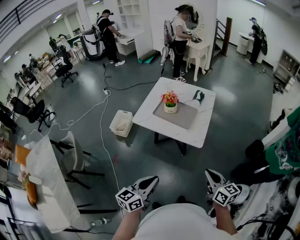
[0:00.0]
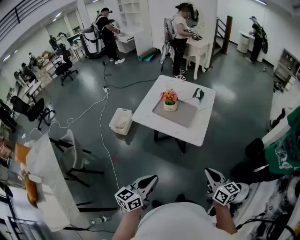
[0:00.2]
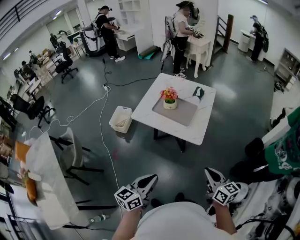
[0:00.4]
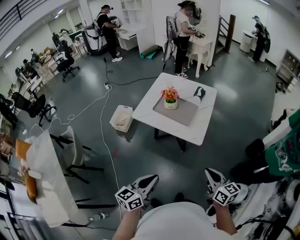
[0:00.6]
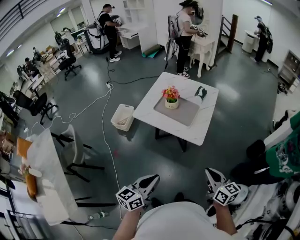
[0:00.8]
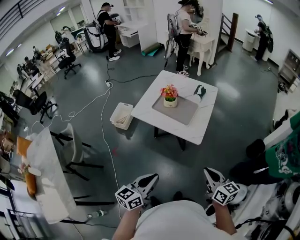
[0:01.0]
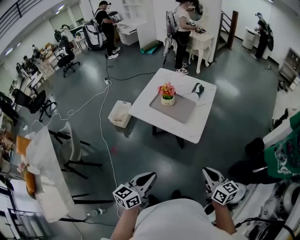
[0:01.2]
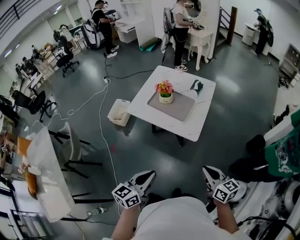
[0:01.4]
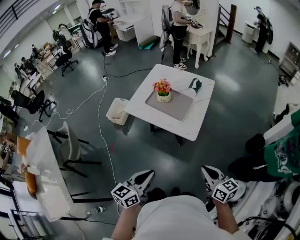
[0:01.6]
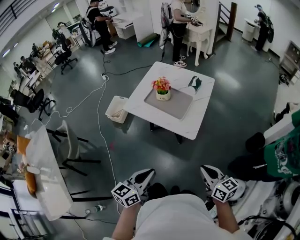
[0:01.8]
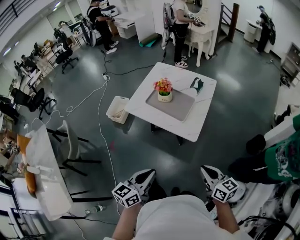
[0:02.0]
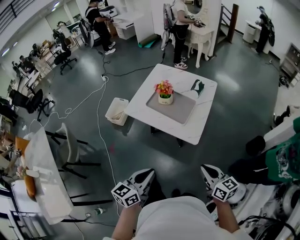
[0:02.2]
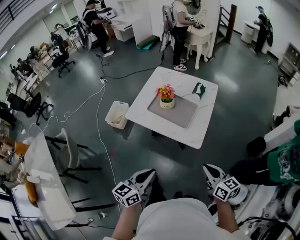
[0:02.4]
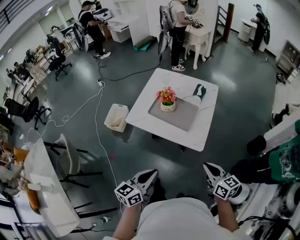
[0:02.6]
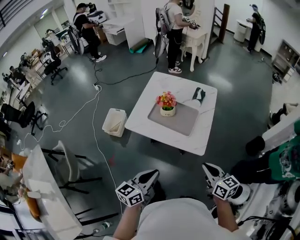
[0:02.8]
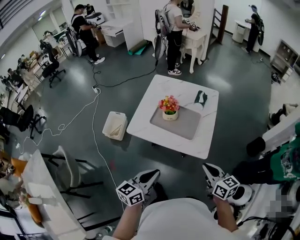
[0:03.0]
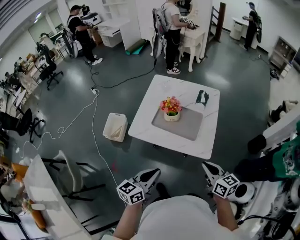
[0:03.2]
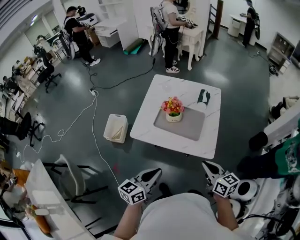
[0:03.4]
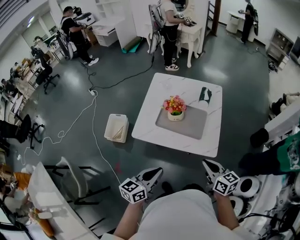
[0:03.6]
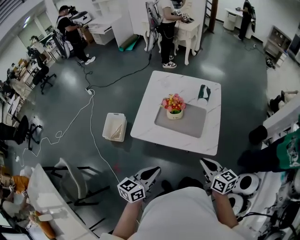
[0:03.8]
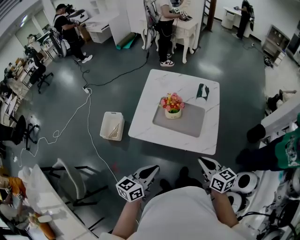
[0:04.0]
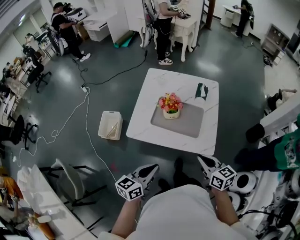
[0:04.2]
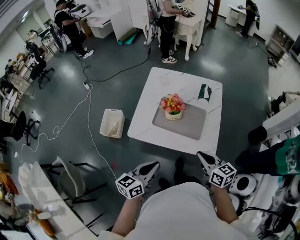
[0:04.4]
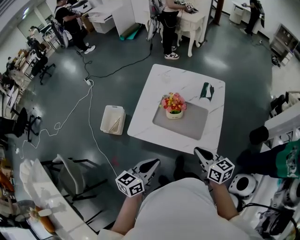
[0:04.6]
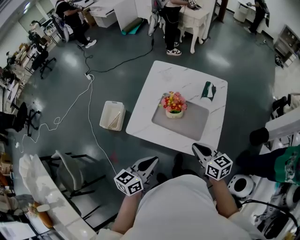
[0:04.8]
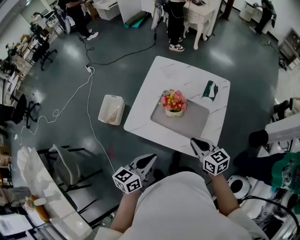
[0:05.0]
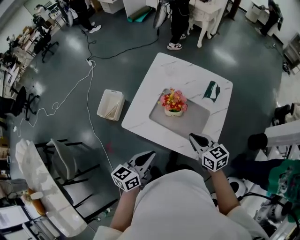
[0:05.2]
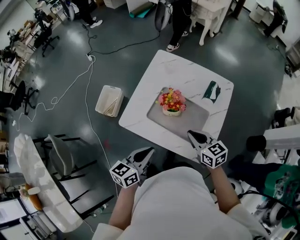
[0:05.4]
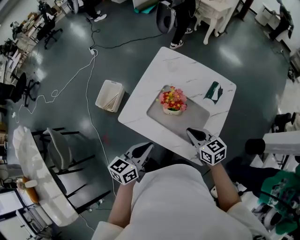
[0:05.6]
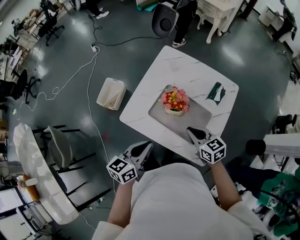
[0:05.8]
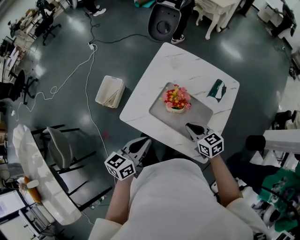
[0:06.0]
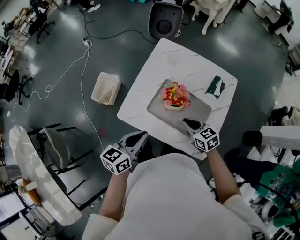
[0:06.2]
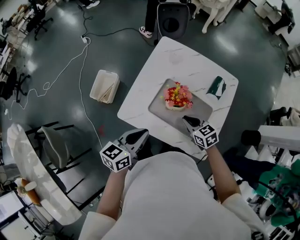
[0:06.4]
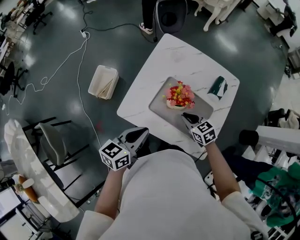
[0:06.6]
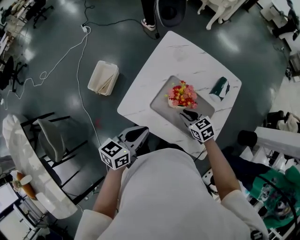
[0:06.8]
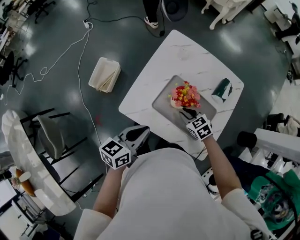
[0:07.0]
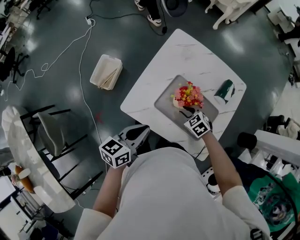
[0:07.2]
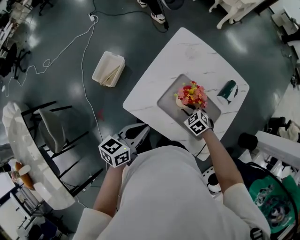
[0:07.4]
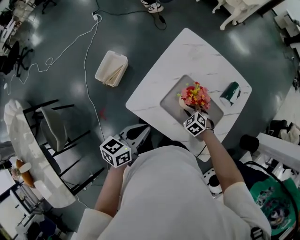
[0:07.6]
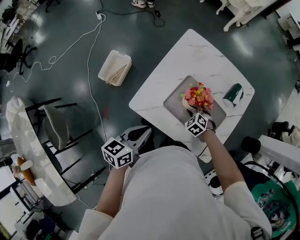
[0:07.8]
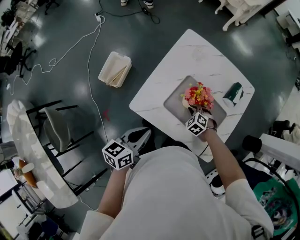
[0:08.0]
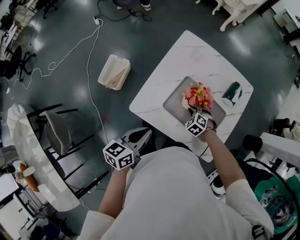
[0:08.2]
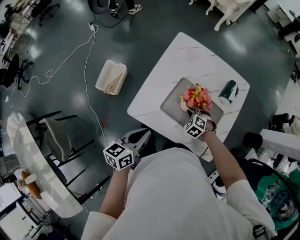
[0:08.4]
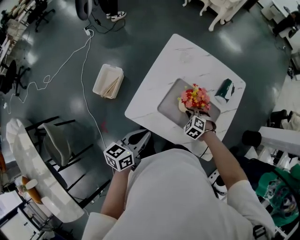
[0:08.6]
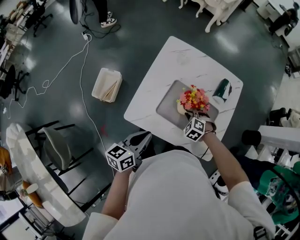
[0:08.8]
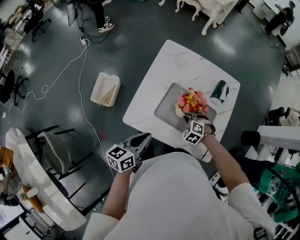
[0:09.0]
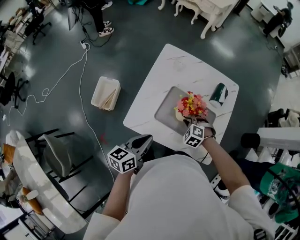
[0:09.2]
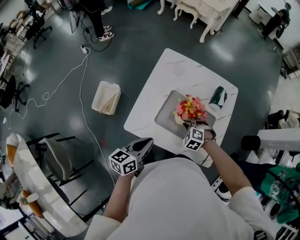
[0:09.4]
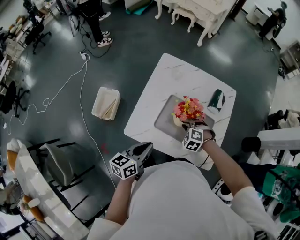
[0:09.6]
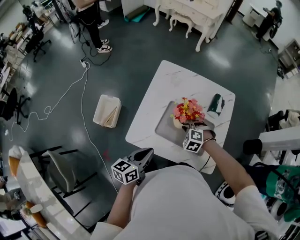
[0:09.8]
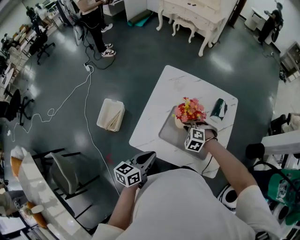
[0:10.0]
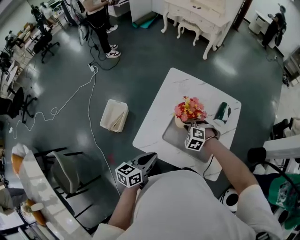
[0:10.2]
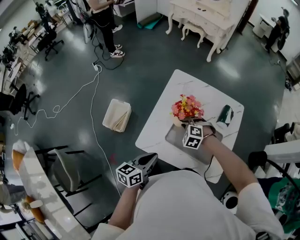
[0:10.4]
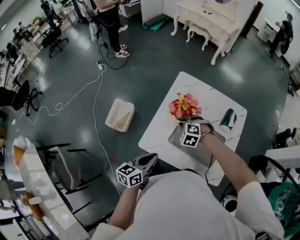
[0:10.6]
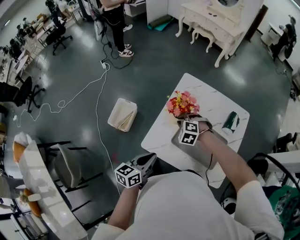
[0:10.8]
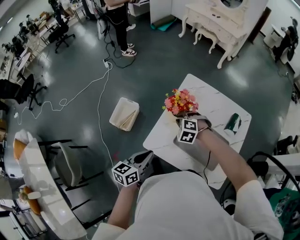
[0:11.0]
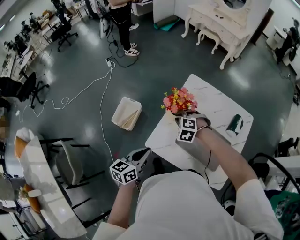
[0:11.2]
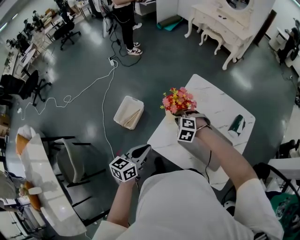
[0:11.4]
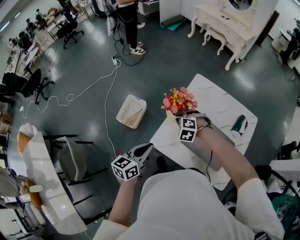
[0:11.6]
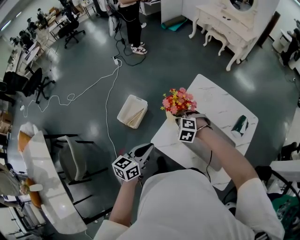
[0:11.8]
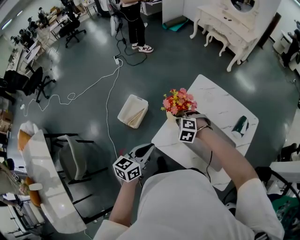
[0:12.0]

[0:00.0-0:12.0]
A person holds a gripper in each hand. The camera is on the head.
0:00.0 to 0:01.6: The two grippers go roughly 5 cm to the right.
0:01.6 to 0:03.0: The grippers both shift forward and to the left by some 20 cm.
0:03.0 to 0:04.4: The two grippers go about 15 cm forward and to the left.
0:04.4 to 0:06.0: The left gripper is displaced forward by roughly 15 cm. Meanwhile the right gripper heads forward and downward, covering some 25 cm, and turns by roughly 30 degrees.
0:06.0 to 0:07.6: The left gripper shifts approximately 10 cm to the left and forward. The right gripper moves downward and forward, roughly 20 cm, tilts its fingers roughly 30 degrees downward, and opens.
0:07.6 to 0:09.0: The right gripper changes place by roughly 5 cm.
0:09.0 to 0:10.4: The right gripper goes roughly 15 cm to the left, upward and forward.
0:10.4 to 0:12.0: Both grippers move to the left, about 15 cm.

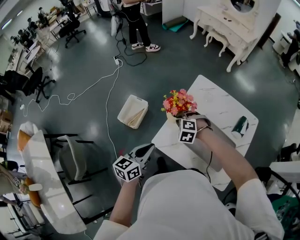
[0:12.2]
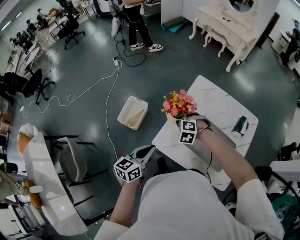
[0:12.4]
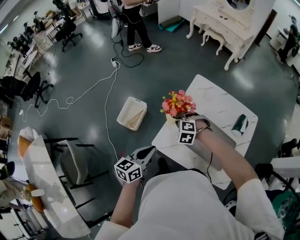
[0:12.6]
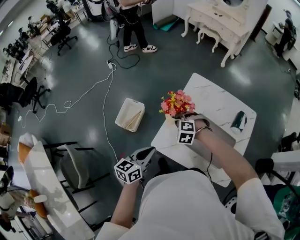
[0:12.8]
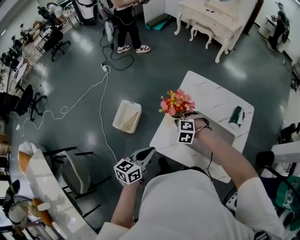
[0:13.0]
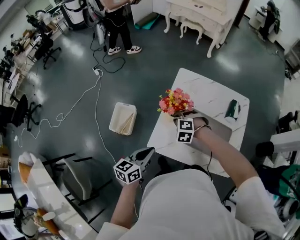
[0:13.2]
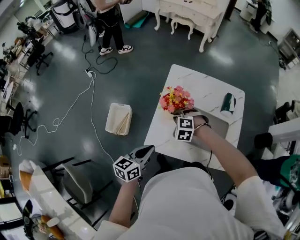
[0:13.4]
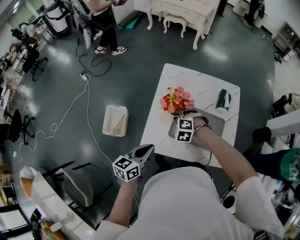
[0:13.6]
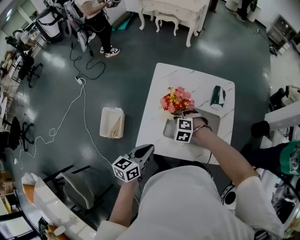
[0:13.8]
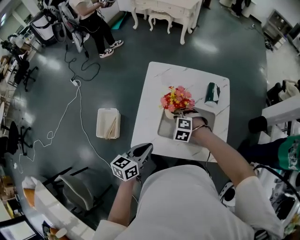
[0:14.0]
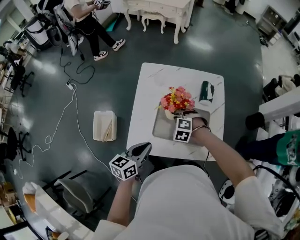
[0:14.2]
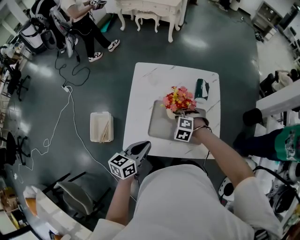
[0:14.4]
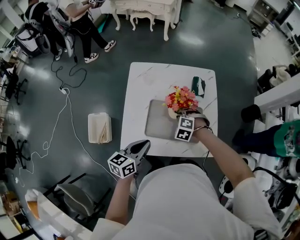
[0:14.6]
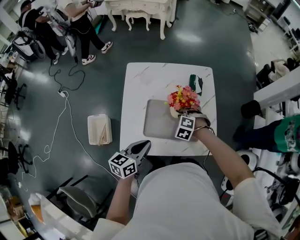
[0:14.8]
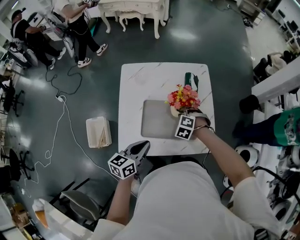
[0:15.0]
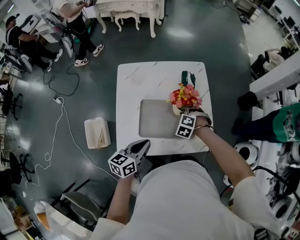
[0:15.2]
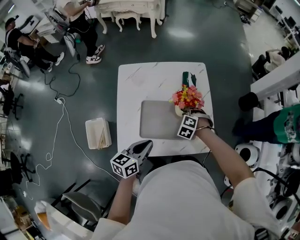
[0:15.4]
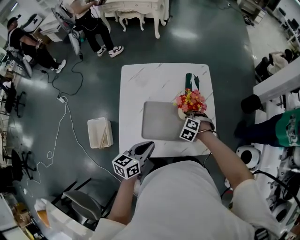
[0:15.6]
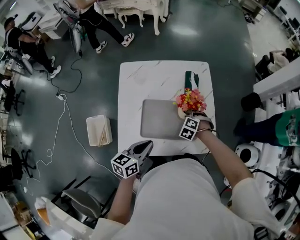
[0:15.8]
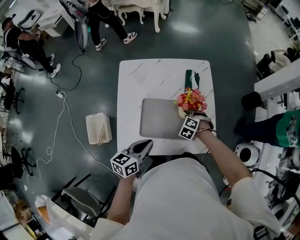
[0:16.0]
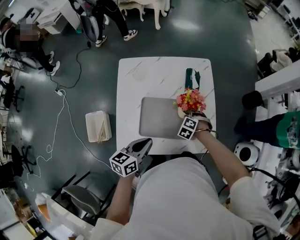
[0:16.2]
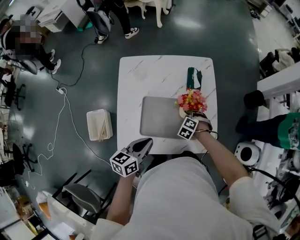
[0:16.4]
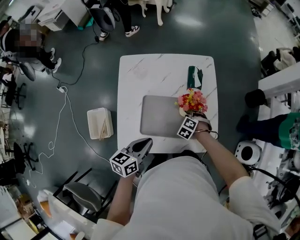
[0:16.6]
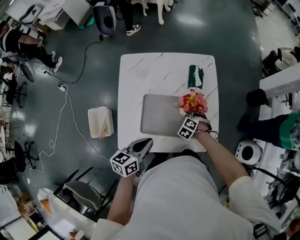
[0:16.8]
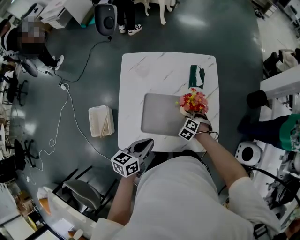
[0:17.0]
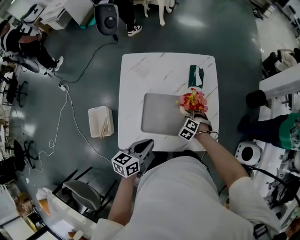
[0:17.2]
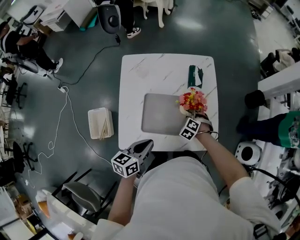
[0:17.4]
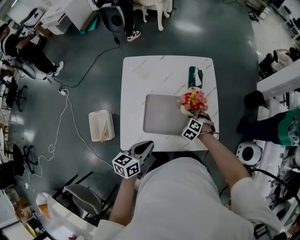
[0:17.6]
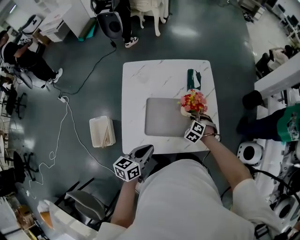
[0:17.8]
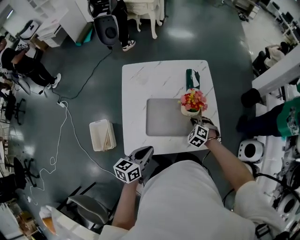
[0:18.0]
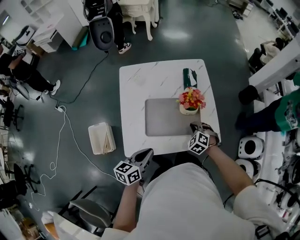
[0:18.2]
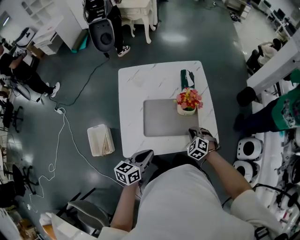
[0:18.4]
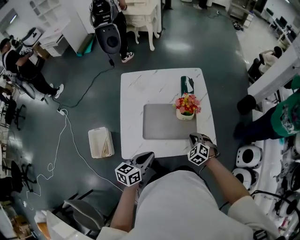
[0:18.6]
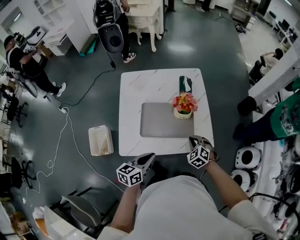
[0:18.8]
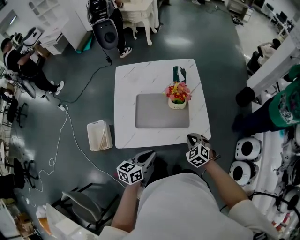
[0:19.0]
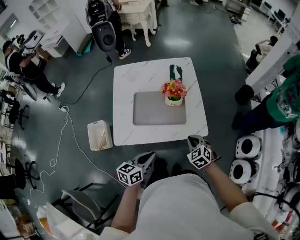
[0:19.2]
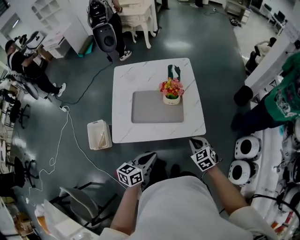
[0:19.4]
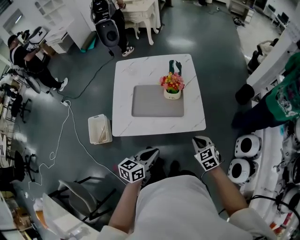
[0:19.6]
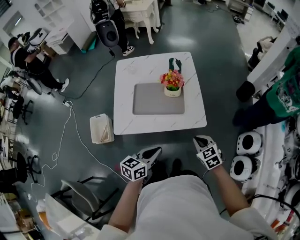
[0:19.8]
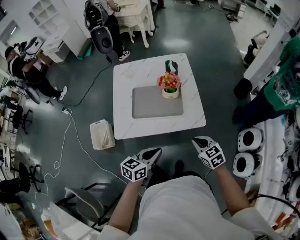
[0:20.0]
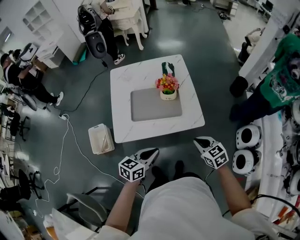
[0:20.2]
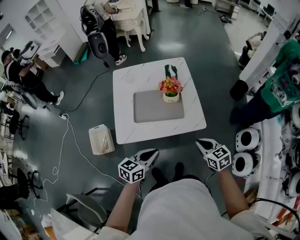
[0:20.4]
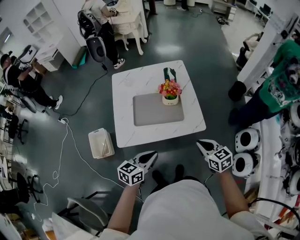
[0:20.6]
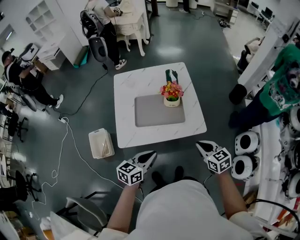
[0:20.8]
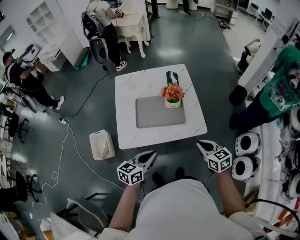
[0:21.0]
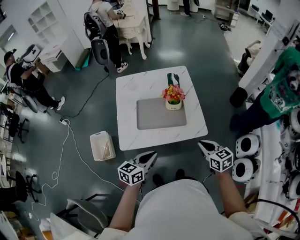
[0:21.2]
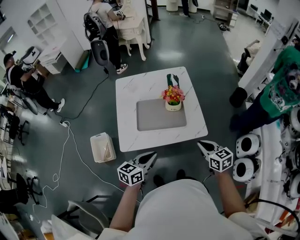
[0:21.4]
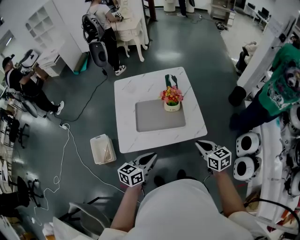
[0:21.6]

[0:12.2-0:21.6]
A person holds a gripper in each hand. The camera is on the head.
0:12.2 to 0:13.8: The right gripper ends up some 15 cm from where it was, and changes its angle by some 20 degrees. The left gripper ends up some 10 cm from where it was, and turns by roughly 20 degrees.
0:13.8 to 0:15.4: The right gripper goes some 20 cm to the right, and swivels roughly 30 degrees. Meanwhile the left gripper shifts about 15 cm to the right and forward.
0:15.4 to 0:17.0: The right gripper travels downward by some 10 cm.
0:17.0 to 0:18.4: The right gripper moves backward and upward, roughly 15 cm, and closes up; the left gripper travels backward by roughly 10 cm.
0:18.4 to 0:20.0: The left gripper heads to the right and backward, covering roughly 20 cm. Meanwhile the right gripper is displaced backward, to the right and upward by approximately 25 cm, and rotates approximately 40 degrees.
0:20.0 to 0:21.6: The right gripper moves upward, roughly 5 cm, and turns by approximately 20 degrees. Meanwhile the left gripper shifts roughly 5 cm to the left.

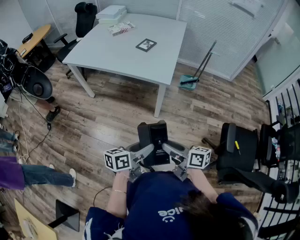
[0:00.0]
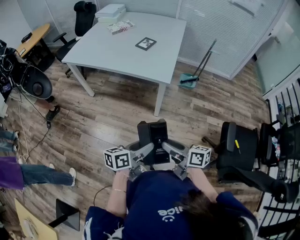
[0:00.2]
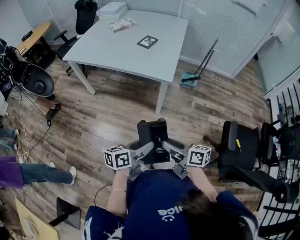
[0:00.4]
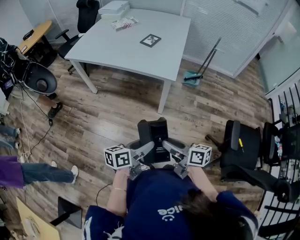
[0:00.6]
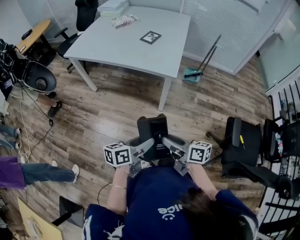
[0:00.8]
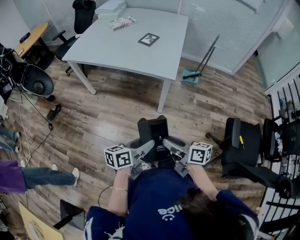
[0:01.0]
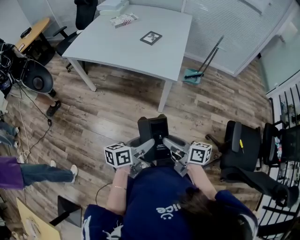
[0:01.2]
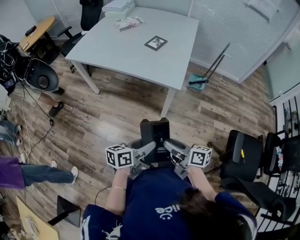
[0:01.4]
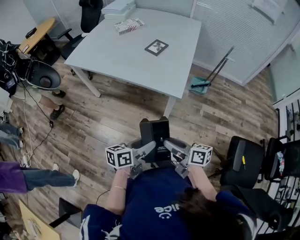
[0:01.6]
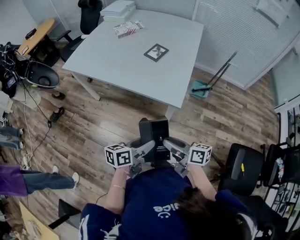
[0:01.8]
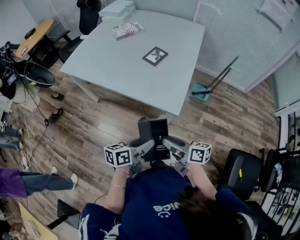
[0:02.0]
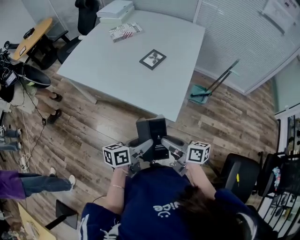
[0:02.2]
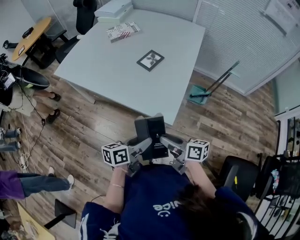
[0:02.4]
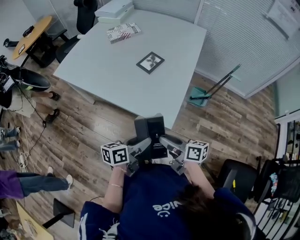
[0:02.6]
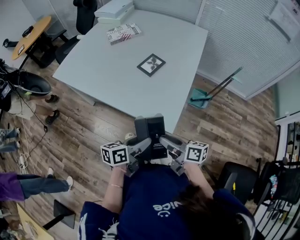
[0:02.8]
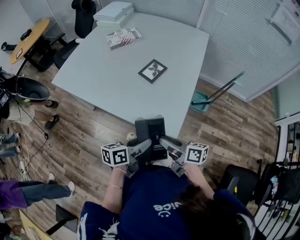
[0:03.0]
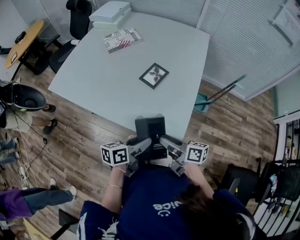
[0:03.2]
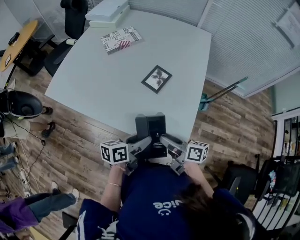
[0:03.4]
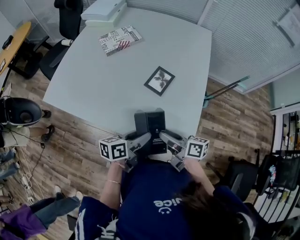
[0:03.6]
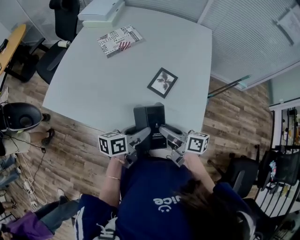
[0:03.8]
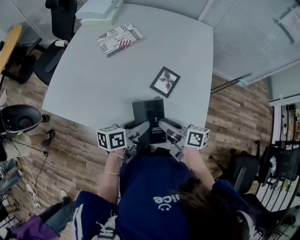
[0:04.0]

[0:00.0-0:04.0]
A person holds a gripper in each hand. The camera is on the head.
0:00.0 to 0:01.4: The grippers both shift forward by about 10 cm.
0:01.4 to 0:02.6: The two grippers go about 25 cm forward.
0:02.6 to 0:04.0: The grippers both shift forward and to the left by approximately 30 cm.
